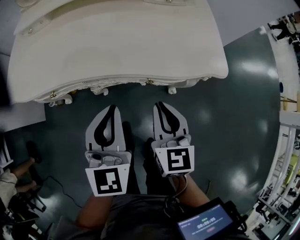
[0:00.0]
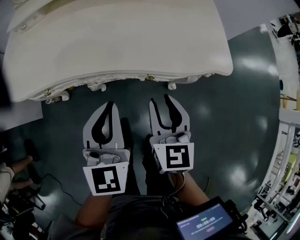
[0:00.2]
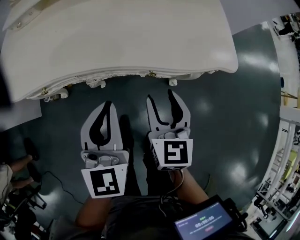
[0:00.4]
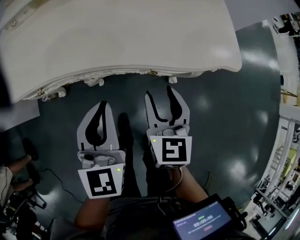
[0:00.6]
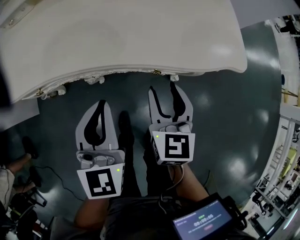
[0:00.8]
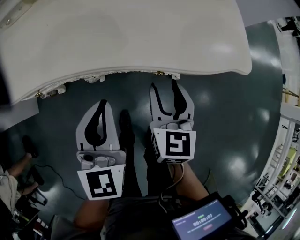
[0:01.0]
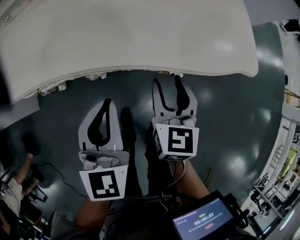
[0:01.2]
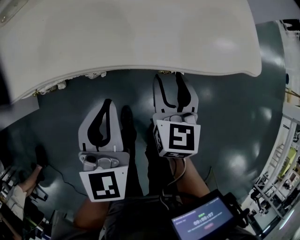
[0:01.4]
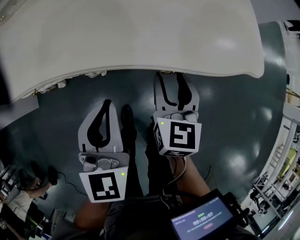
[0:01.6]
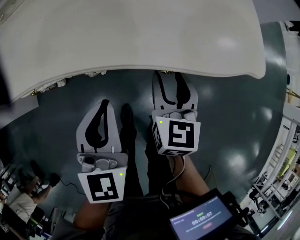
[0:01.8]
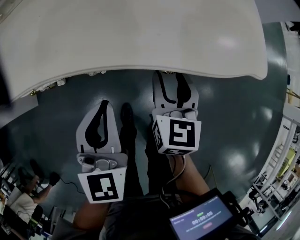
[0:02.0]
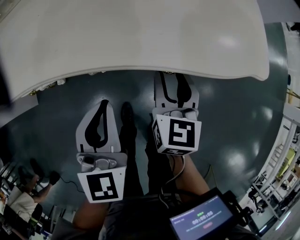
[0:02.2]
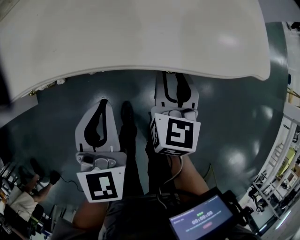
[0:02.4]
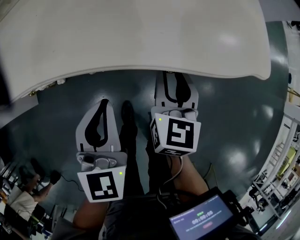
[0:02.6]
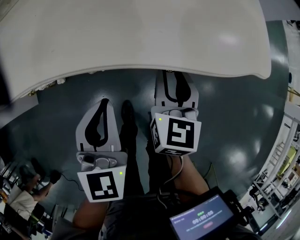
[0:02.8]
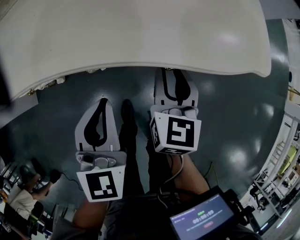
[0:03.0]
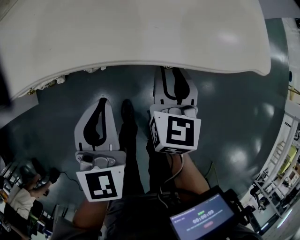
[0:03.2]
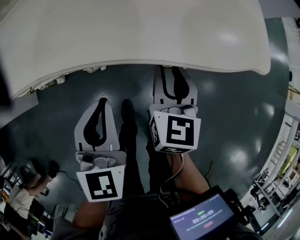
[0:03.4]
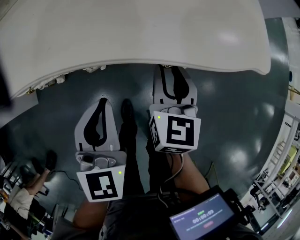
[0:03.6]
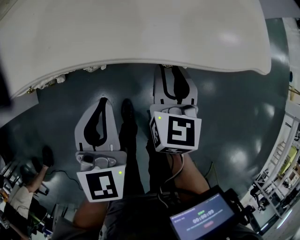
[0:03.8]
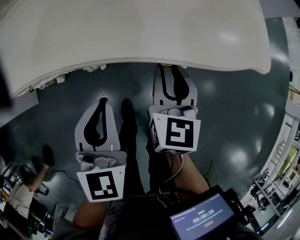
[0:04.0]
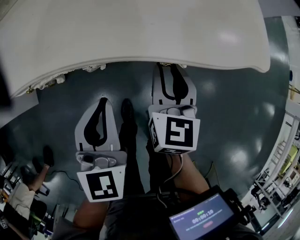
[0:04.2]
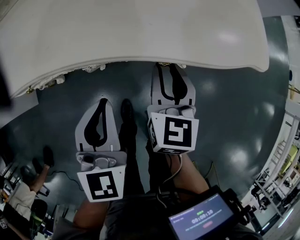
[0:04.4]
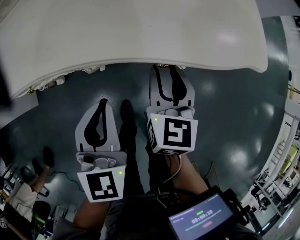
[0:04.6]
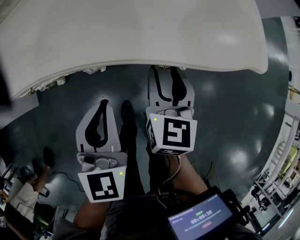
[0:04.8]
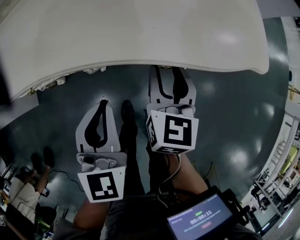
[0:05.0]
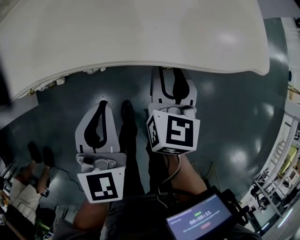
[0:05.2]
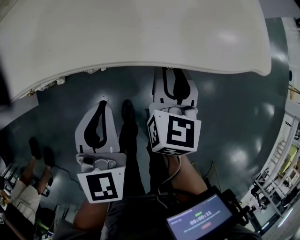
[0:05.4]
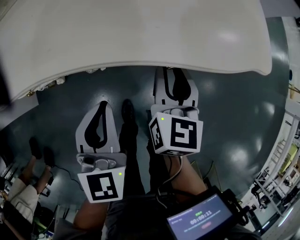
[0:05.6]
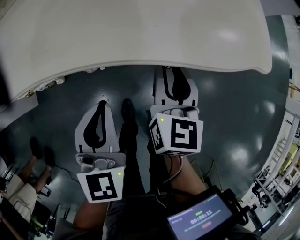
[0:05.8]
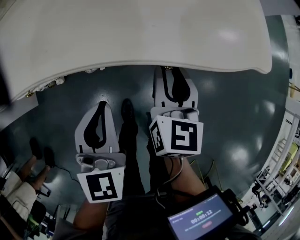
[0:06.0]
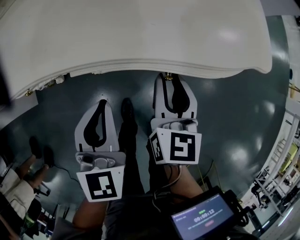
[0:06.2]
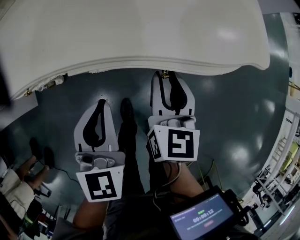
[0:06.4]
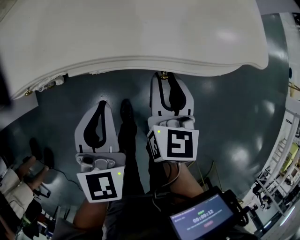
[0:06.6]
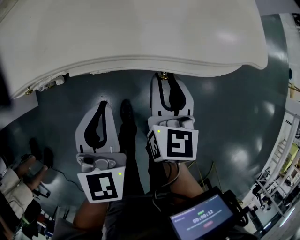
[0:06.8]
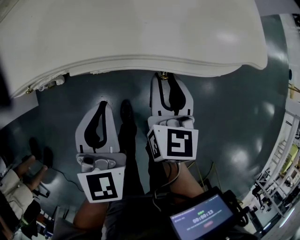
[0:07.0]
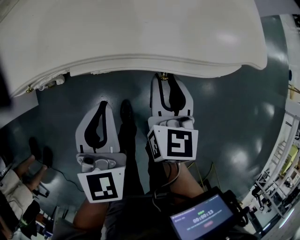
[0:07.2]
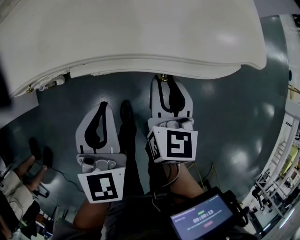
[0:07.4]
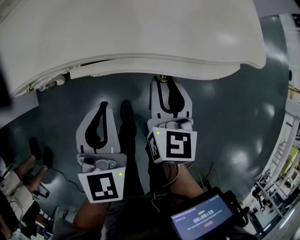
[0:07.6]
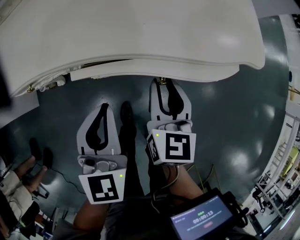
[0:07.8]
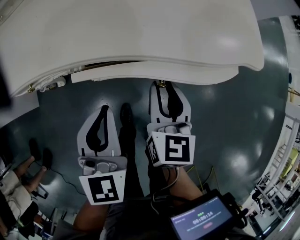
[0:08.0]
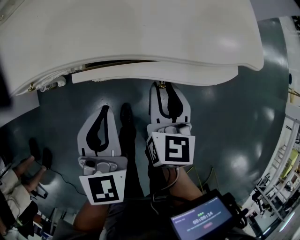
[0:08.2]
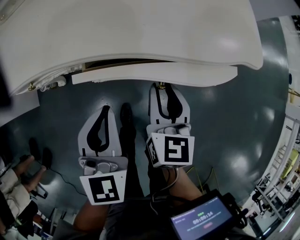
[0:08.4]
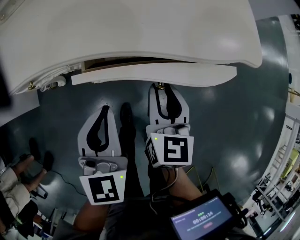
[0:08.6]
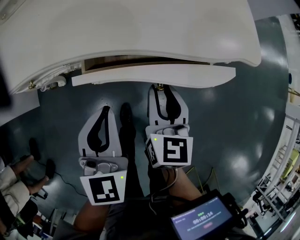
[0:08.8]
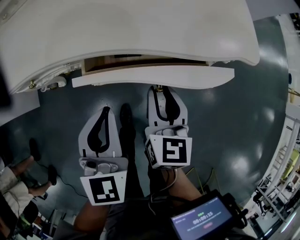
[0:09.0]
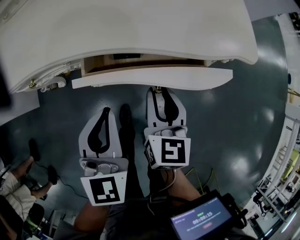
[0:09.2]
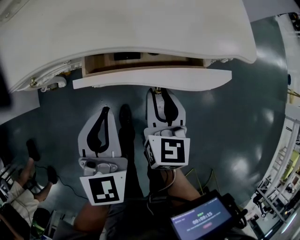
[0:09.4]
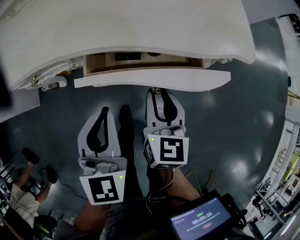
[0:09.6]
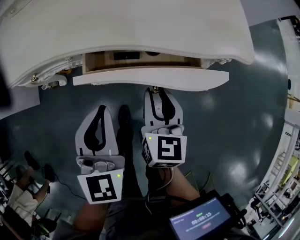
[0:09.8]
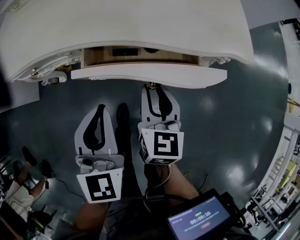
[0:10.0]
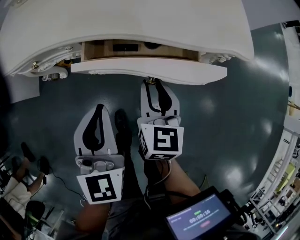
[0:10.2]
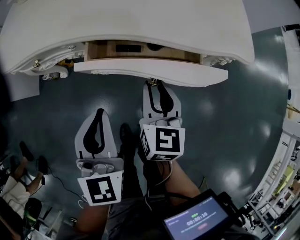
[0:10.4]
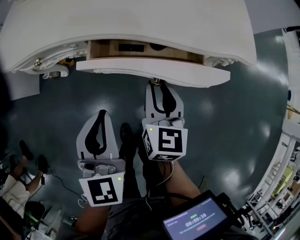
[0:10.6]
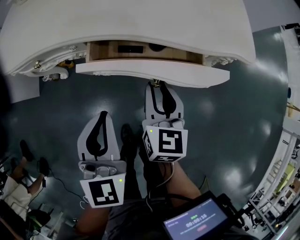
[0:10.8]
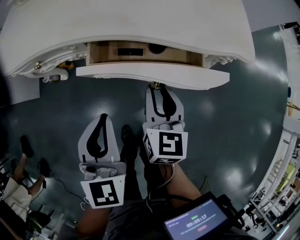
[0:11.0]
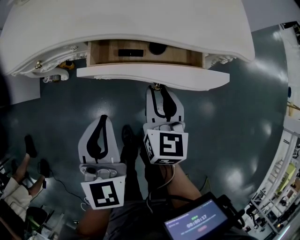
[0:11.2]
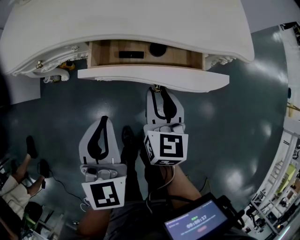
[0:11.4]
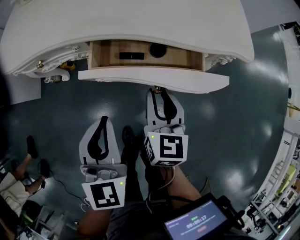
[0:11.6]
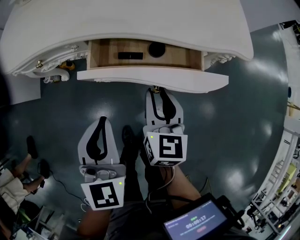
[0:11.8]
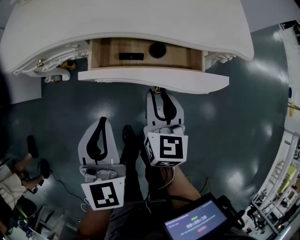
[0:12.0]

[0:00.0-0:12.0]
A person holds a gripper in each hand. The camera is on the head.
0:00.0 to 0:01.6: The left gripper moves downward, roughly 10 cm, while the right gripper is displaced downward and forward by about 10 cm, and opens up.
0:01.6 to 0:04.4: Both grippers stay put.
0:04.4 to 0:09.0: The grippers make only small movements.
0:09.0 to 0:10.4: The grippers make only small movements.
0:10.4 to 0:12.0: The grippers move only a little.

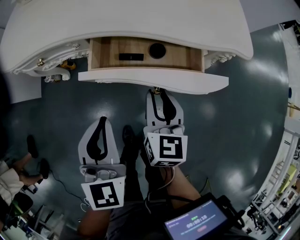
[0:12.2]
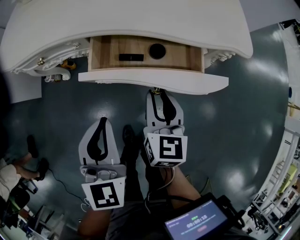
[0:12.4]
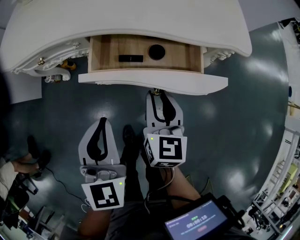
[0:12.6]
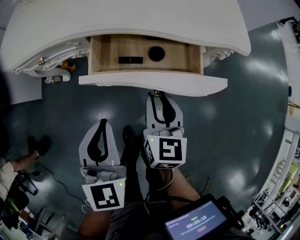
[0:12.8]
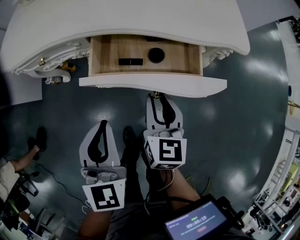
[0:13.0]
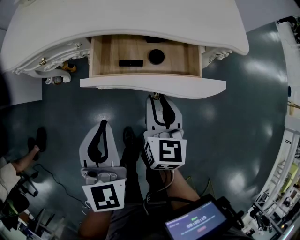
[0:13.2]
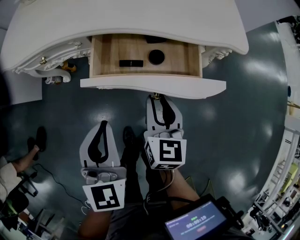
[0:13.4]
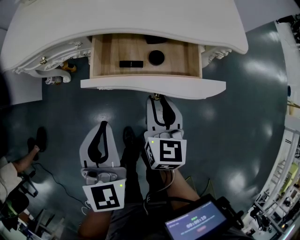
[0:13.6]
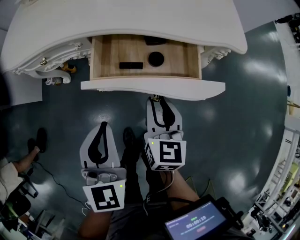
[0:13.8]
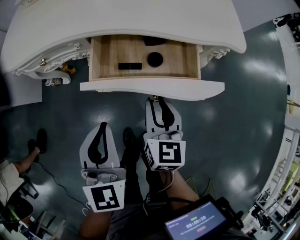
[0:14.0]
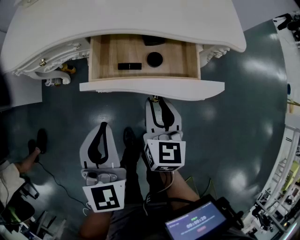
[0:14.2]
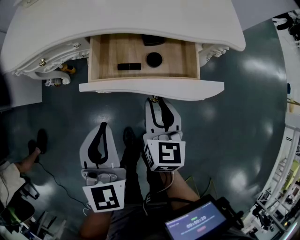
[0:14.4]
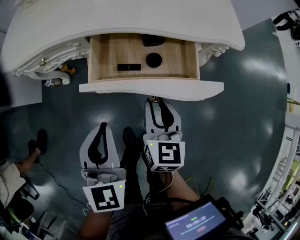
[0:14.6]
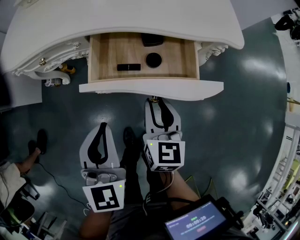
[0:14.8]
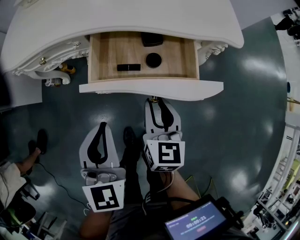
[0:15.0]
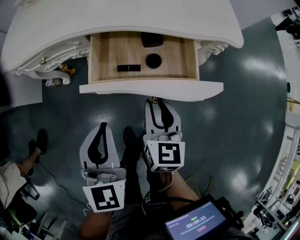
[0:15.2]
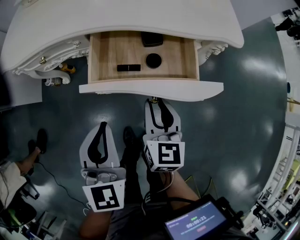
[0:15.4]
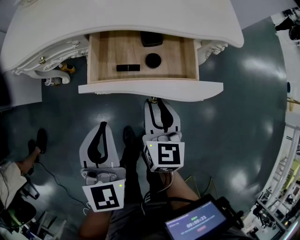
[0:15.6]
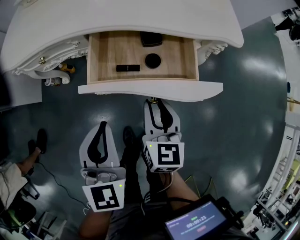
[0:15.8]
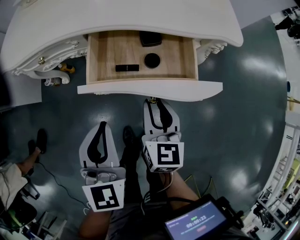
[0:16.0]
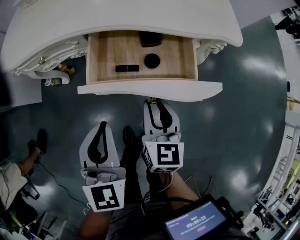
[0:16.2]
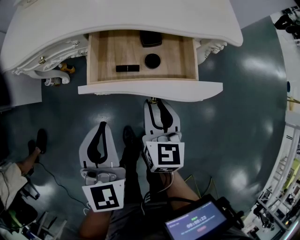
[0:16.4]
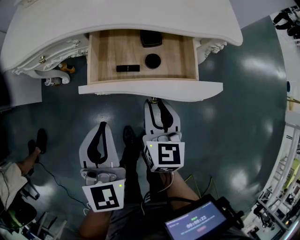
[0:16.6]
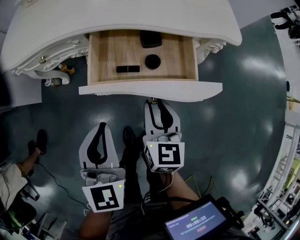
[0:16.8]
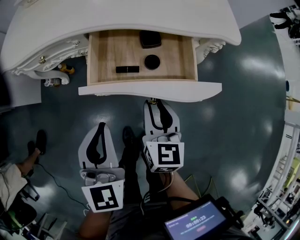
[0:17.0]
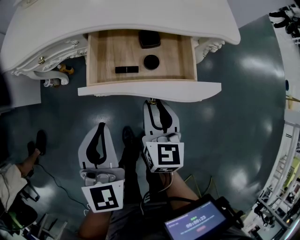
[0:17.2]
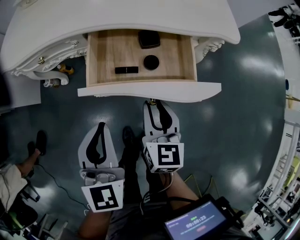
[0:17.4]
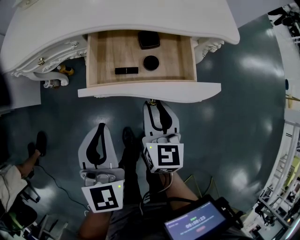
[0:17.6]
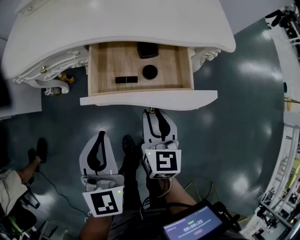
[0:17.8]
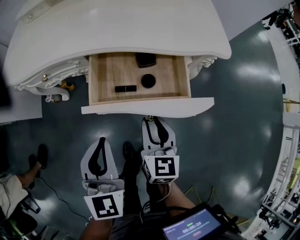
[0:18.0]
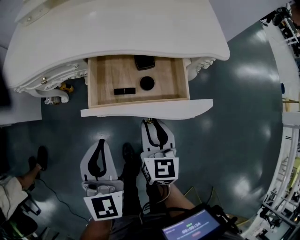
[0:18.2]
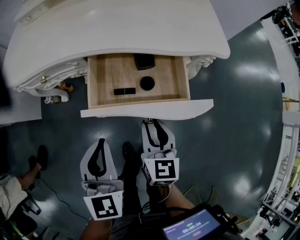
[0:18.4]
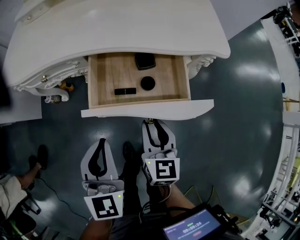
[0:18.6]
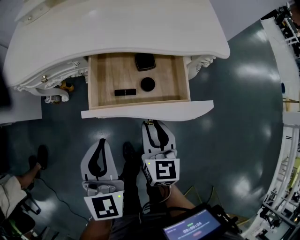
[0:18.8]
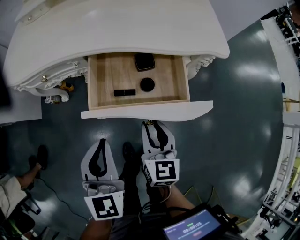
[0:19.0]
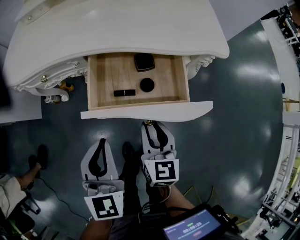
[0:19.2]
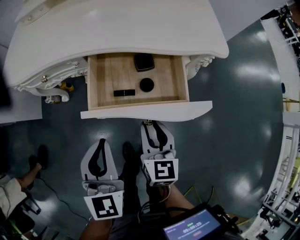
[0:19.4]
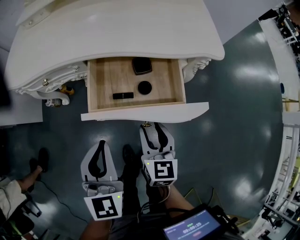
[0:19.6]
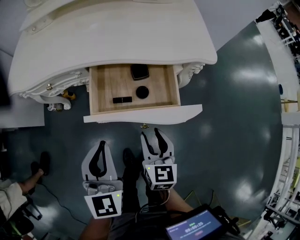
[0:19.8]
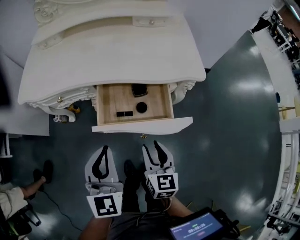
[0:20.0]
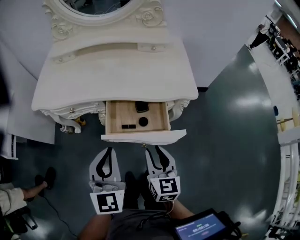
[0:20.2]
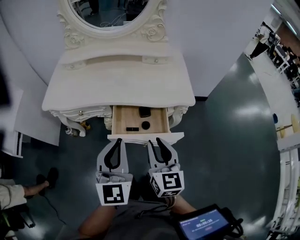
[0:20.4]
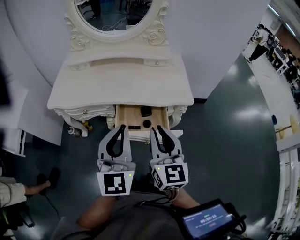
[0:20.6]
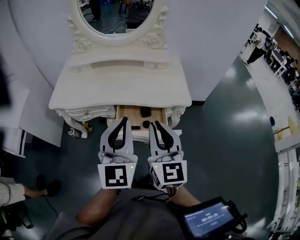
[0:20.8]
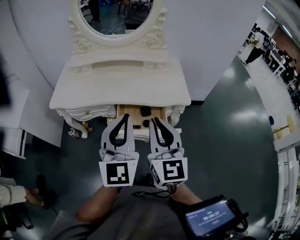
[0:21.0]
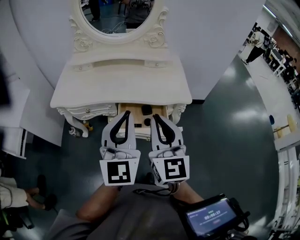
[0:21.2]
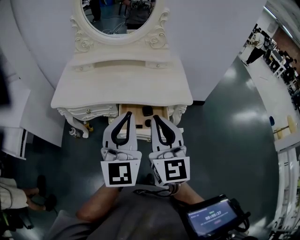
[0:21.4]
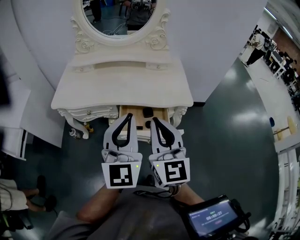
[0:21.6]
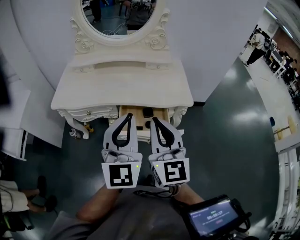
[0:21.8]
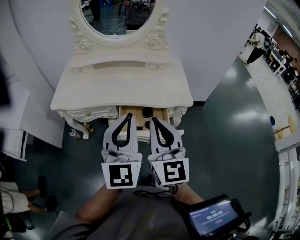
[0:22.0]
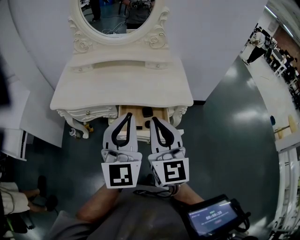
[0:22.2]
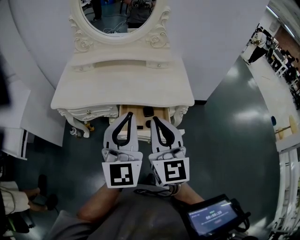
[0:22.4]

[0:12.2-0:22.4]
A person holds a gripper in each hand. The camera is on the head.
0:12.2 to 0:15.2: The grippers stay close to where they were, moving slightly.
0:15.2 to 0:18.0: Neither gripper changes place.
0:18.0 to 0:19.4: Neither gripper changes place.
0:19.4 to 0:21.0: The grippers both shift upward by about 35 cm. The left gripper swivels approximately 30 degrees. The right gripper swivels roughly 30 degrees, and closes its fingers.
0:21.0 to 0:22.4: The grippers make only small movements.

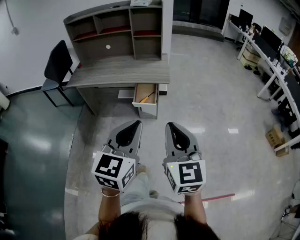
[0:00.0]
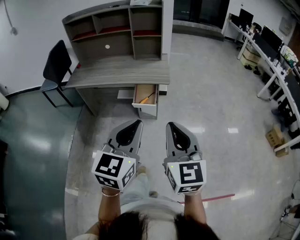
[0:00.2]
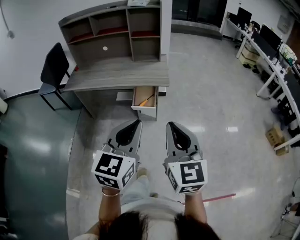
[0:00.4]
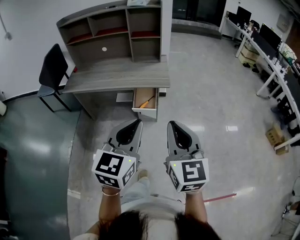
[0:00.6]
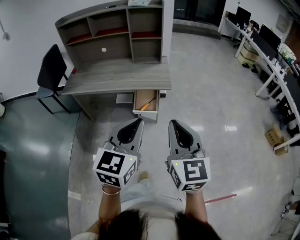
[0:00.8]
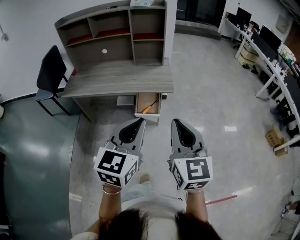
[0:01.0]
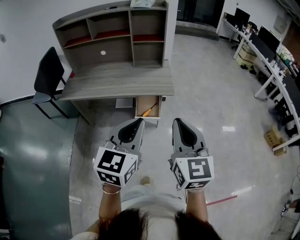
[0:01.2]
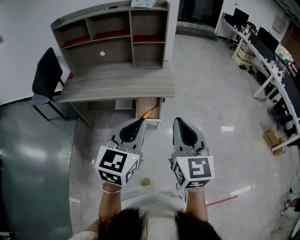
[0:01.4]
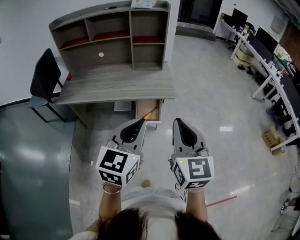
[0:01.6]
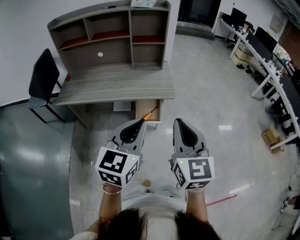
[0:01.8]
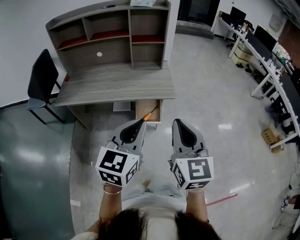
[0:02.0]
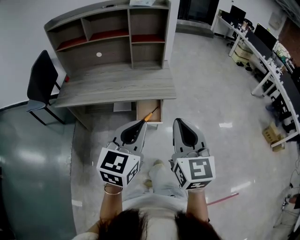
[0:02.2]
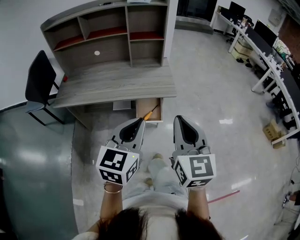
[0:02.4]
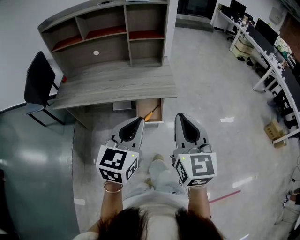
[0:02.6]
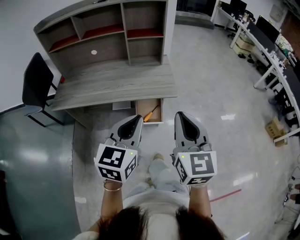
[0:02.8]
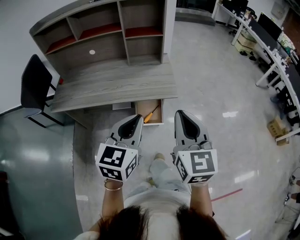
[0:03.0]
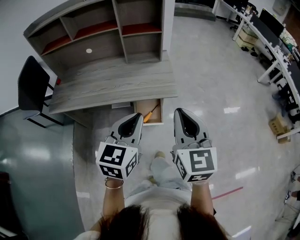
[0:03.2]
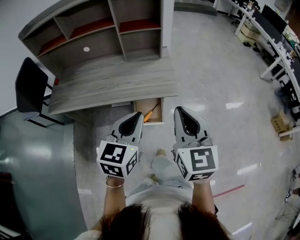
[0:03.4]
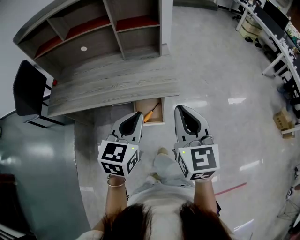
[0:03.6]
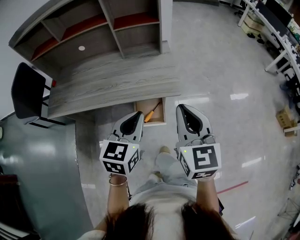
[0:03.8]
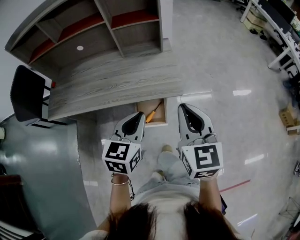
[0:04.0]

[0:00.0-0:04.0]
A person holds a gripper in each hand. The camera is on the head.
0:00.0 to 0:01.4: The two grippers go about 20 cm forward and to the left.
0:01.4 to 0:02.6: Both grippers move forward, about 5 cm.
0:02.6 to 0:04.0: The two grippers go some 20 cm forward and downward.
